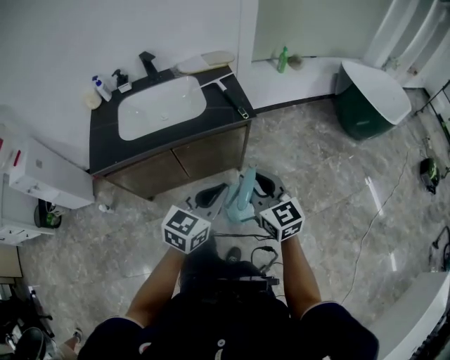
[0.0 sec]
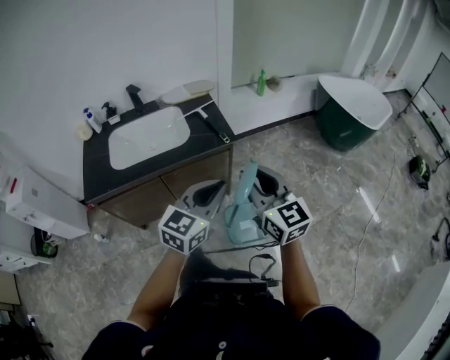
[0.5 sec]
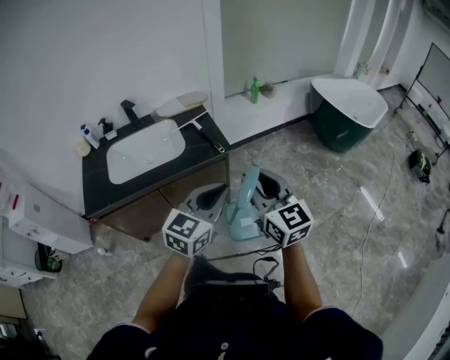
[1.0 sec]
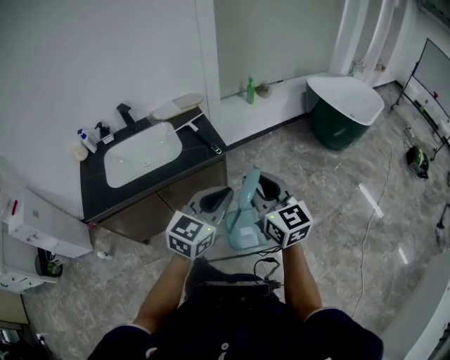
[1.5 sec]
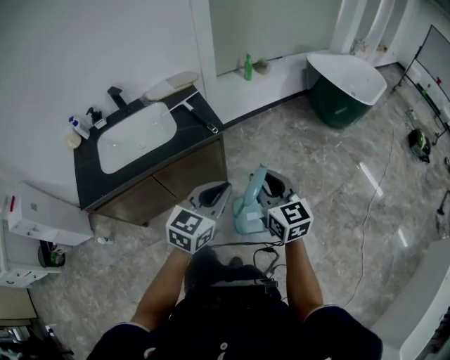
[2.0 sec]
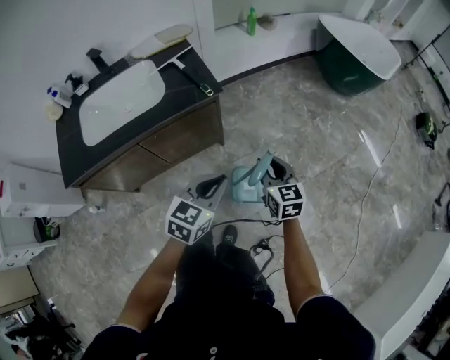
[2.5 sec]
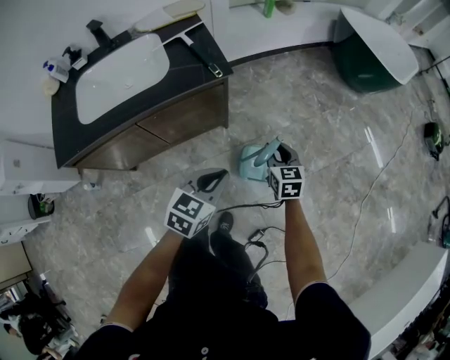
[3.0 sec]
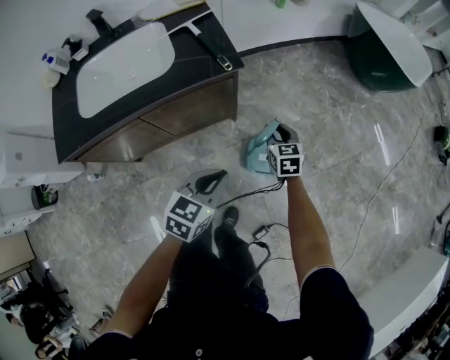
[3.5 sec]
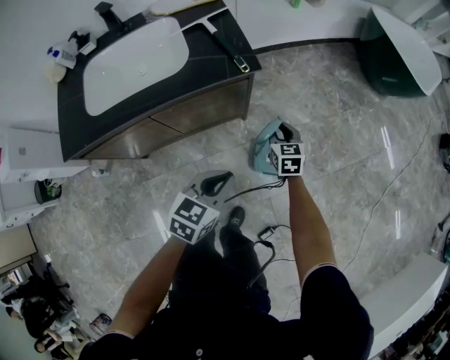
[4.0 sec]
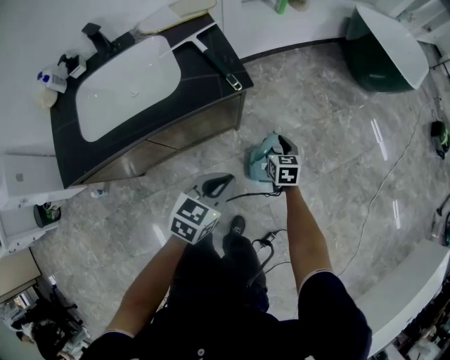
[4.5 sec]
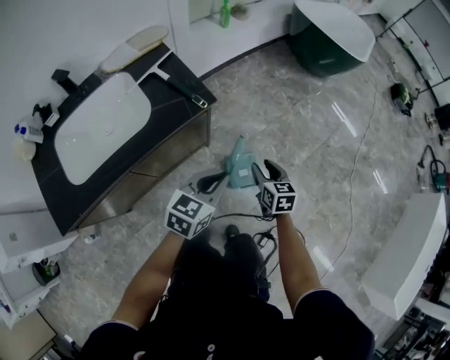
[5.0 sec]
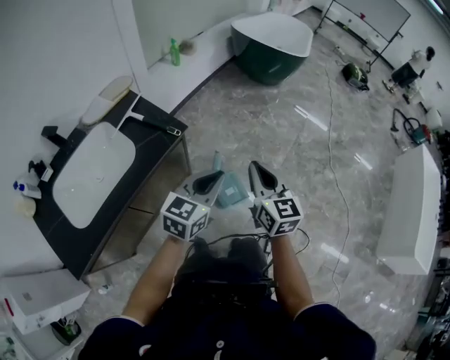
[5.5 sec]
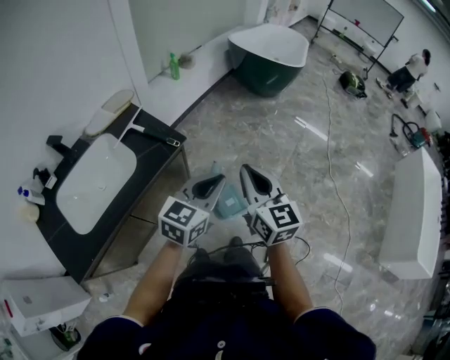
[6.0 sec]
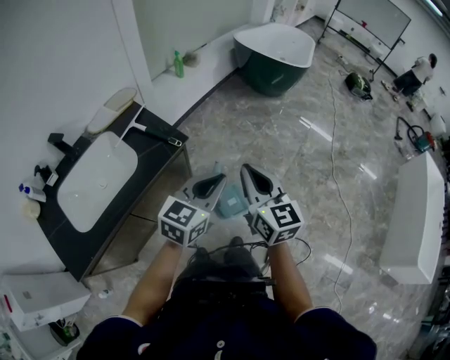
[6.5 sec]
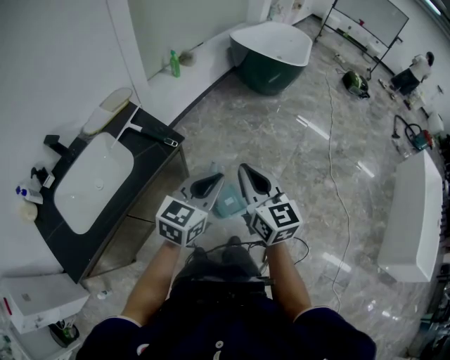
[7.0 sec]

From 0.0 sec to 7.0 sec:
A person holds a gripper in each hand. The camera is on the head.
From 0.0 sec to 2.0 sec: Both grippers move to the right, roughly 10 cm.
From 2.0 sec to 3.5 sec: The right gripper travels downward and forward by some 35 cm, and rotates some 30 degrees, while the left gripper moves downward, roughly 20 cm, and swivels approximately 20 degrees.
From 3.5 sec to 5.0 sec: The right gripper goes approximately 10 cm backward and upward, and changes its angle by roughly 20 degrees. The left gripper shifts about 5 cm forward, and changes its angle by approximately 20 degrees.
From 5.0 sec to 7.0 sec: The left gripper travels upward by some 15 cm; the right gripper is displaced upward by approximately 30 cm, points its fingers roughly 30 degrees further upward, and closes its fingers.

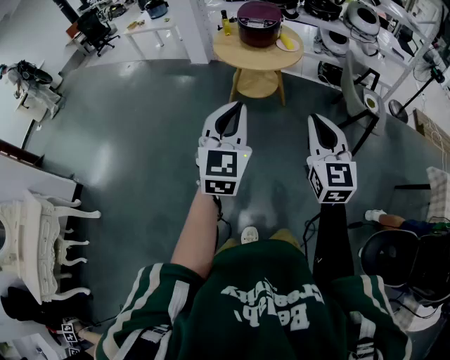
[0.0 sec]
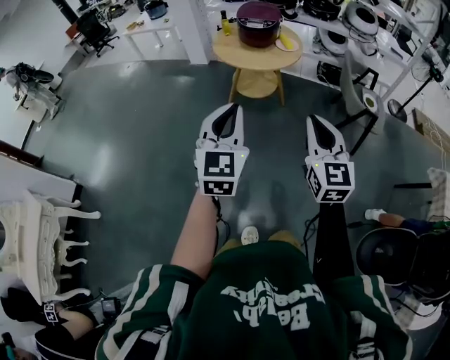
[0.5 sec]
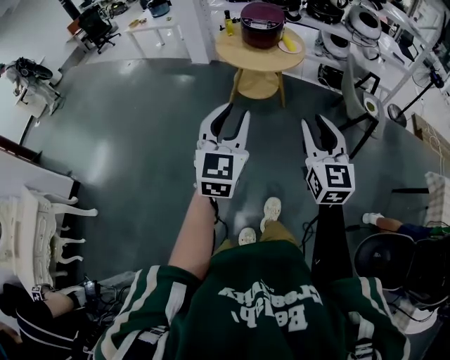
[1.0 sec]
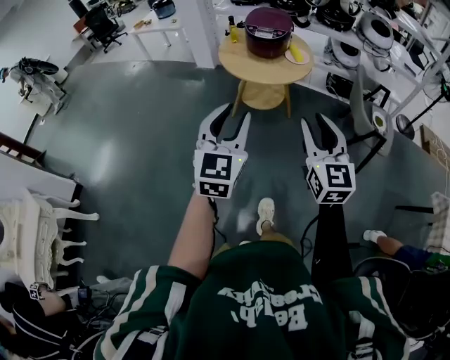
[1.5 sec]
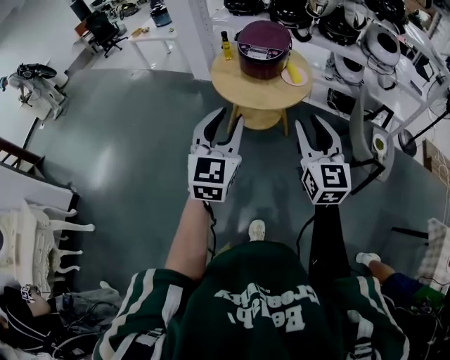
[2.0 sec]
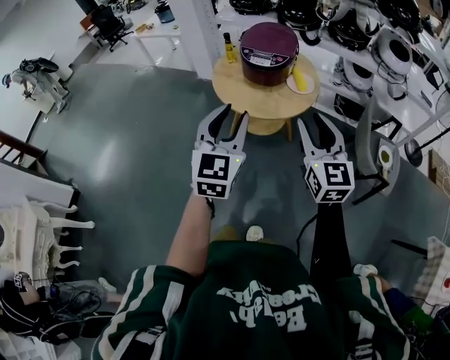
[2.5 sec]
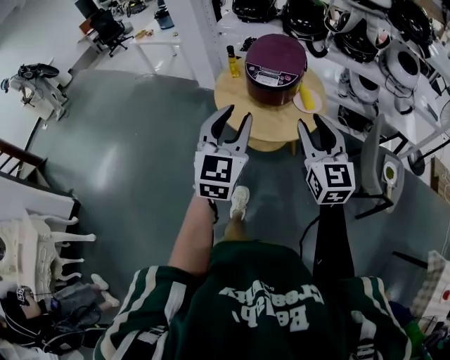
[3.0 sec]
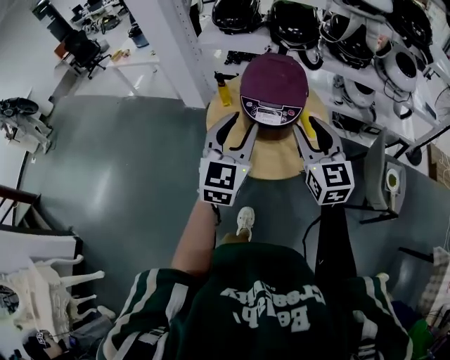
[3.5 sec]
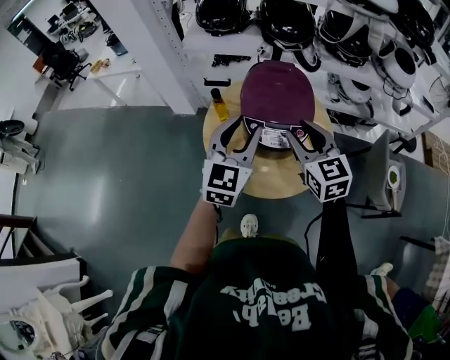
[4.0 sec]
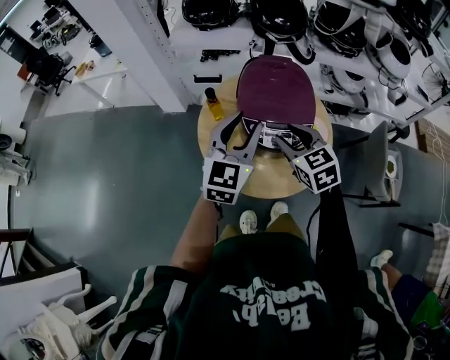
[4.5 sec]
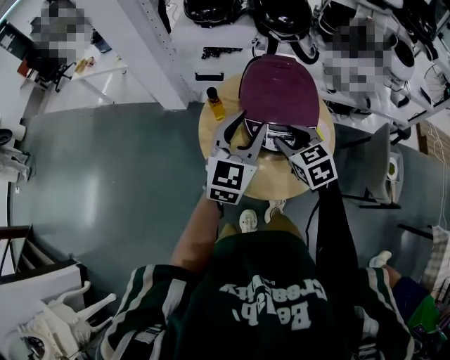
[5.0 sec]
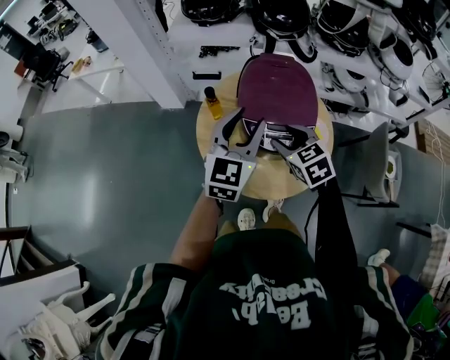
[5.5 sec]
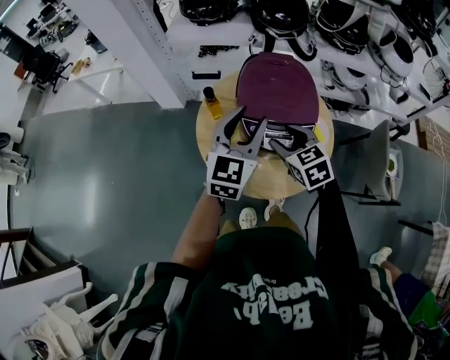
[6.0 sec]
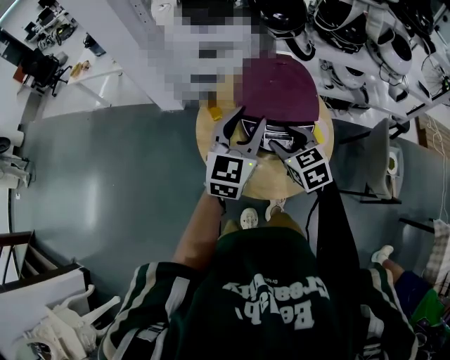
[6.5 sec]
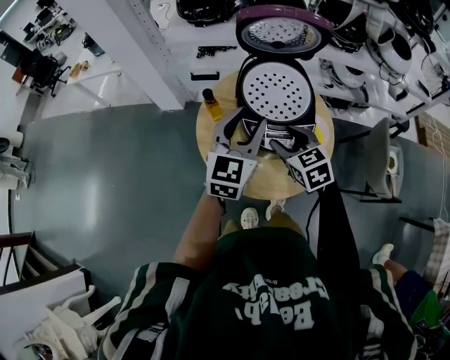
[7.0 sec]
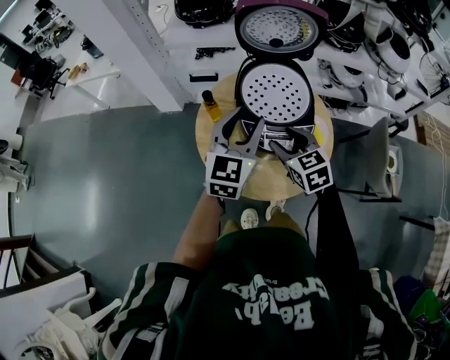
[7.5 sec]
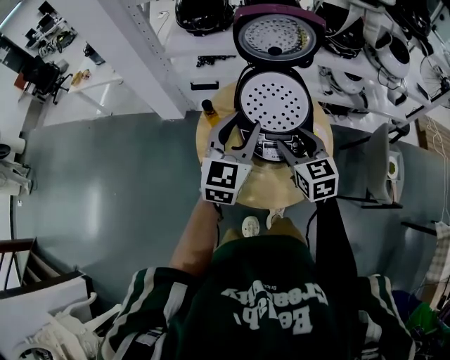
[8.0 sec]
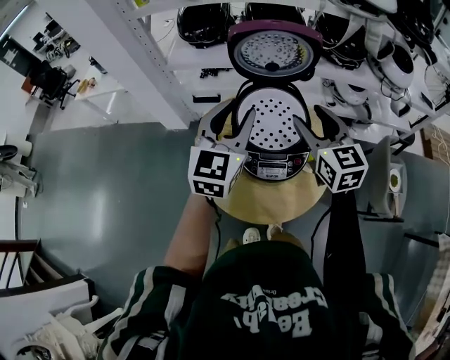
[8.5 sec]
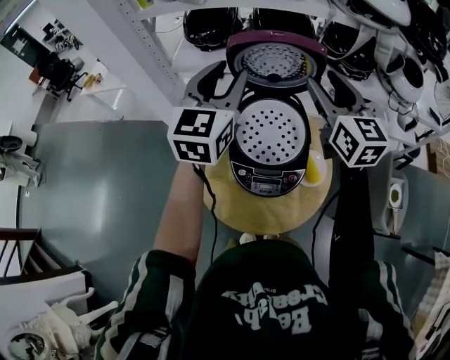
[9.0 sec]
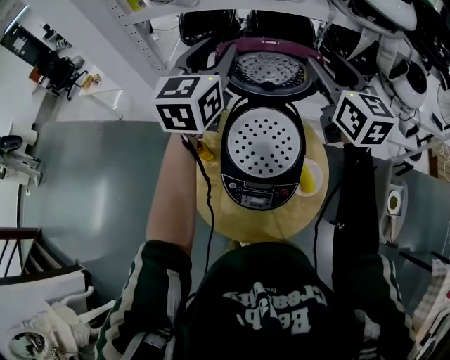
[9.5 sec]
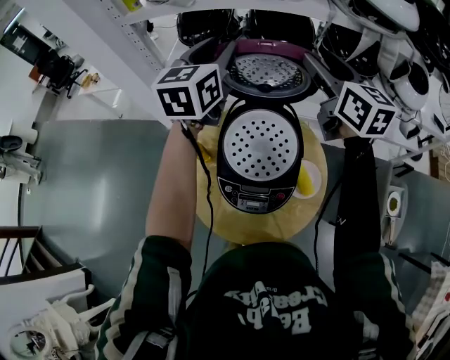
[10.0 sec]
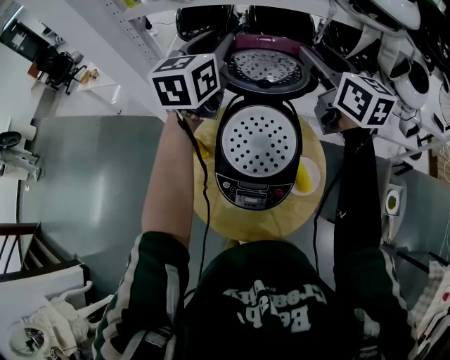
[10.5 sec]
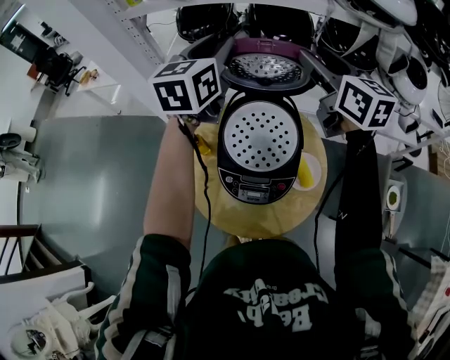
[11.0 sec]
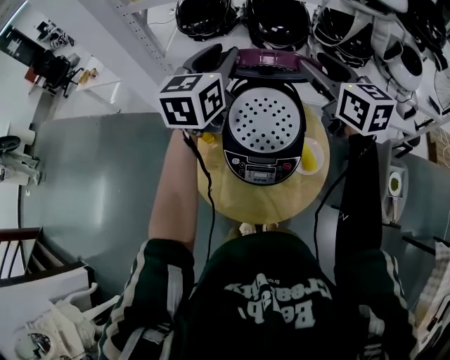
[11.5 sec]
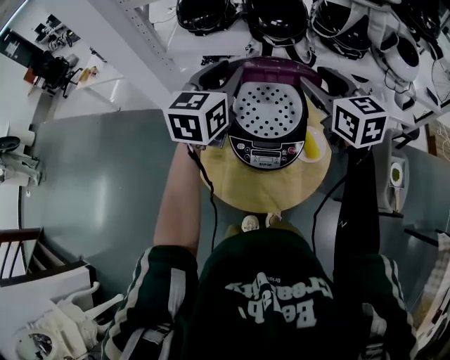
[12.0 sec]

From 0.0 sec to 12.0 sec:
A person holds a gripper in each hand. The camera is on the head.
From 0.0 sec to 2.0 sec: The two grippers go about 25 cm forward. The right gripper opens its fingers, while the left gripper opens its fingers.
From 2.0 sec to 4.0 sec: The pair of grippers is taken forward, roughly 50 cm.
From 4.0 sec to 6.0 sec: The right gripper is displaced downward by roughly 10 cm, and turns by roughly 20 degrees. Meanwhile the left gripper heads forward, covering approximately 5 cm.
From 6.0 sec to 8.0 sec: The grippers make only small movements.
From 8.0 sec to 10.0 sec: The right gripper moves forward, upward and to the right, roughly 35 cm, and turns by roughly 30 degrees. The left gripper goes approximately 30 cm forward and upward.
From 10.0 sec to 12.0 sec: The left gripper heads backward, covering roughly 15 cm, while the right gripper moves backward and downward, some 15 cm.

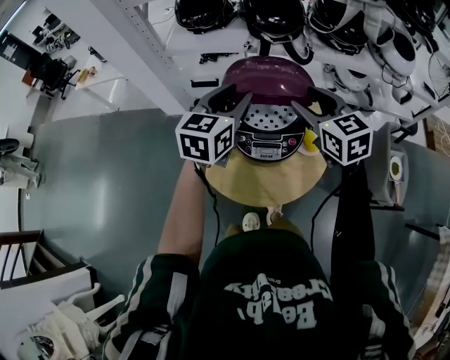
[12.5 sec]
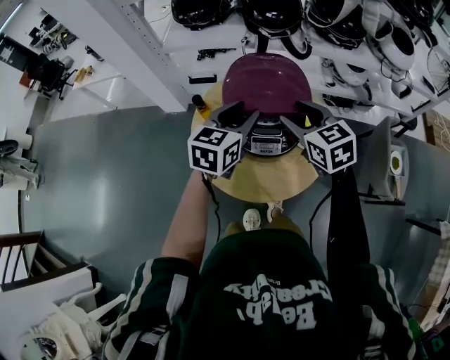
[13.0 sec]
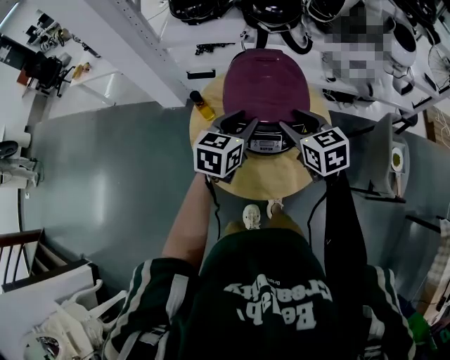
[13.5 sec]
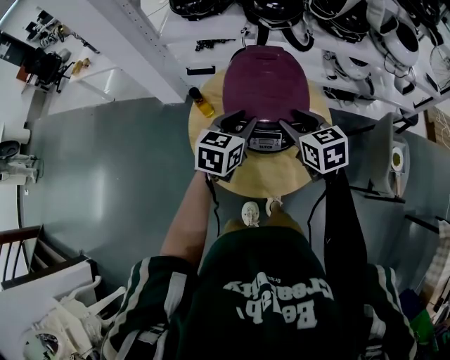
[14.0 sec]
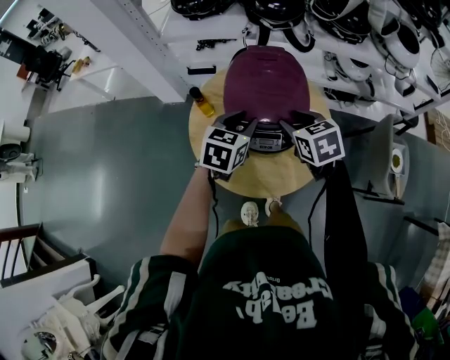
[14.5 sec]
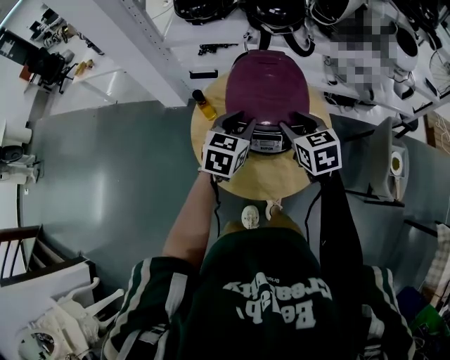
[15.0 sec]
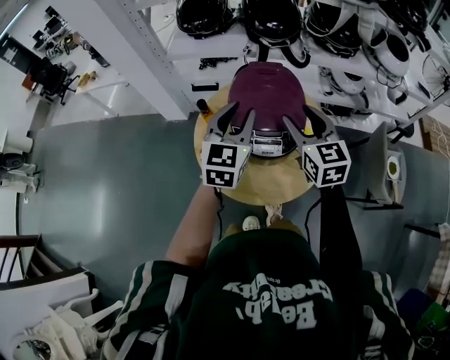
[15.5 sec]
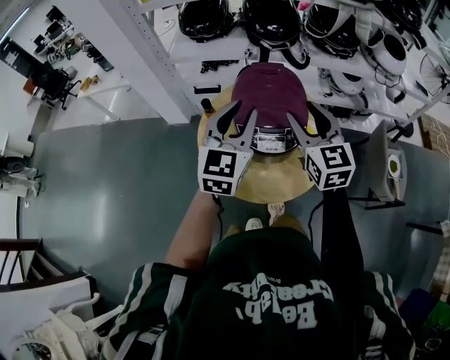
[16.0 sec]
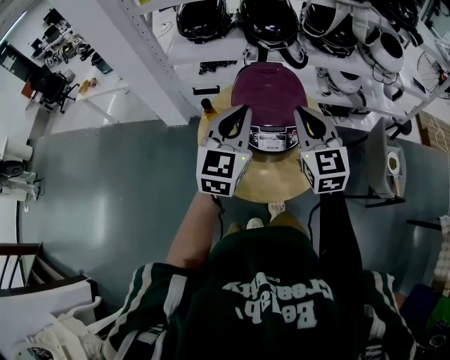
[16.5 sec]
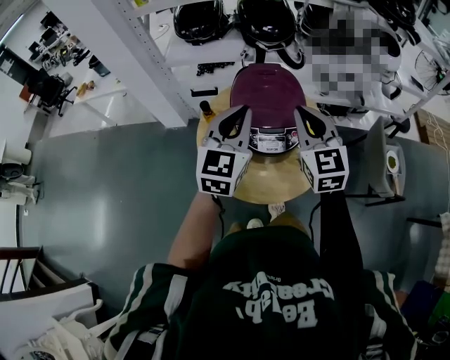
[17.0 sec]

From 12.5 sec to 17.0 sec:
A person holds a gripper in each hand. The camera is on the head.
From 12.5 sec to 14.5 sec: Both grippers move downward, roughly 15 cm. The right gripper turns by some 20 degrees.
From 14.5 sec to 17.0 sec: The grippers both shift upward by some 15 cm. The right gripper points its fingers approximately 30 degrees further upward, and closes up, while the left gripper changes its angle by some 30 degrees, and closes up.

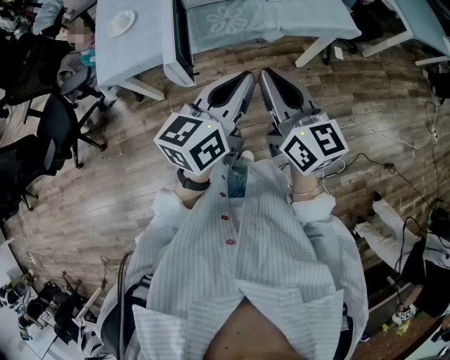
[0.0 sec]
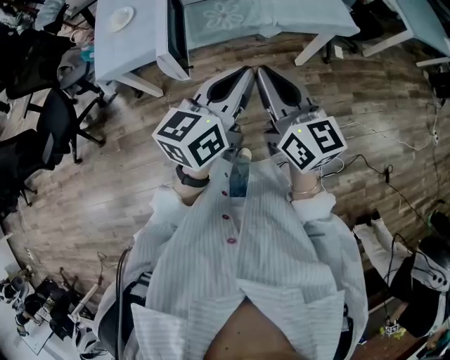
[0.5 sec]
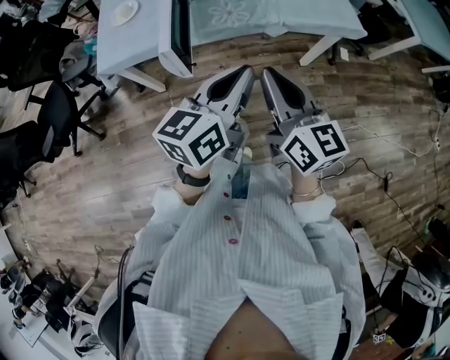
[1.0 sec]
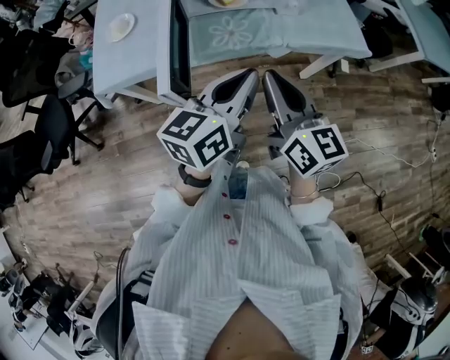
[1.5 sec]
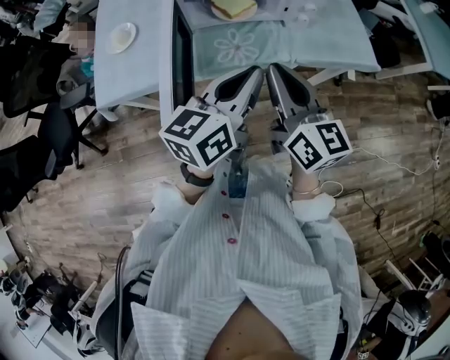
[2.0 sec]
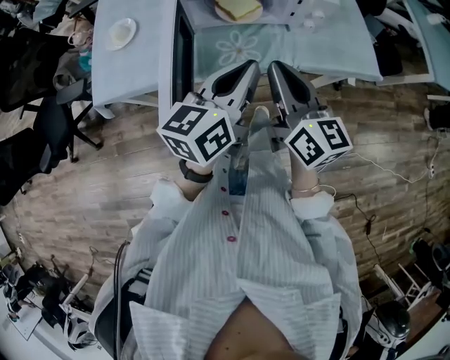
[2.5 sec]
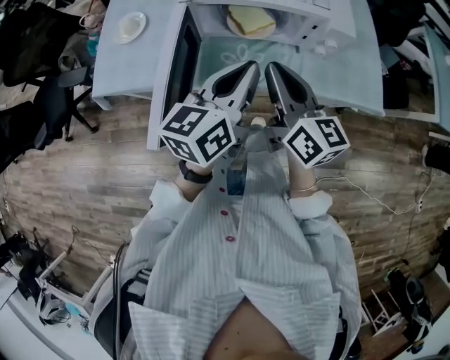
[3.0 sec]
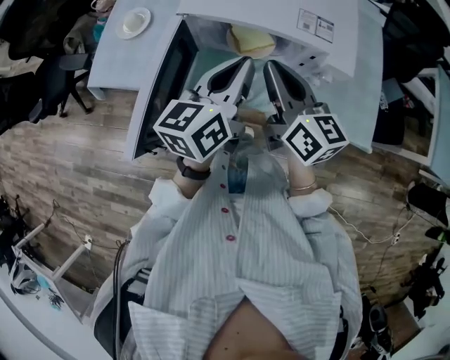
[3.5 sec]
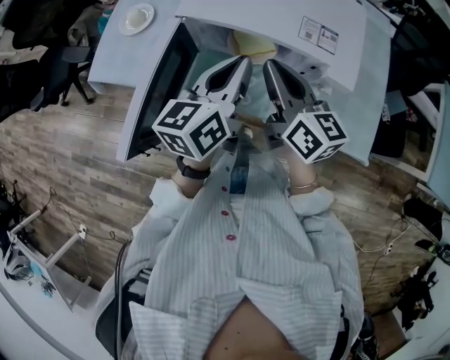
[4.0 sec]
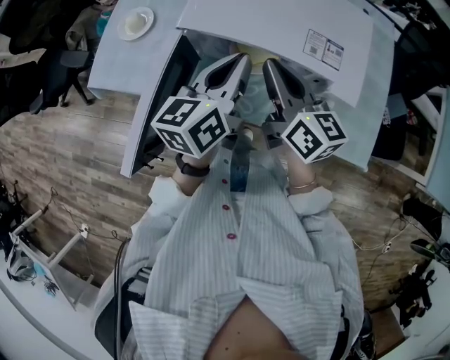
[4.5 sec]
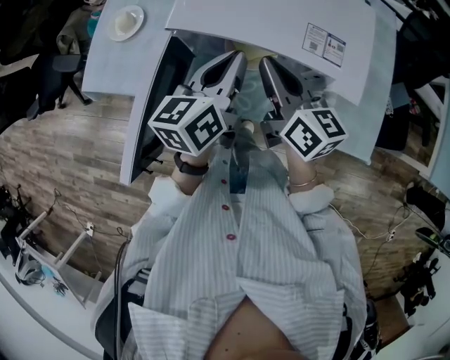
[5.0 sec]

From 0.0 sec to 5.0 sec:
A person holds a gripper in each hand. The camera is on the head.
From 0.0 sec to 2.5 sec: Both grippers move forward, roughly 20 cm.
From 2.5 sec to 5.0 sec: The right gripper shifts by approximately 25 cm, and rotates roughly 30 degrees. The left gripper shifts by some 20 cm, and changes its angle by about 30 degrees.
